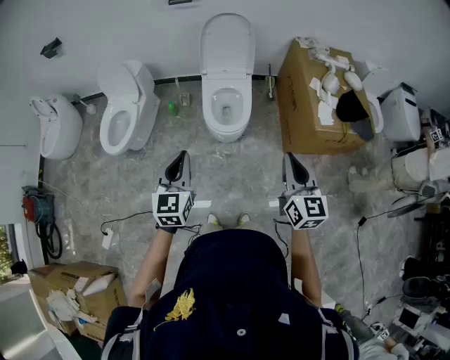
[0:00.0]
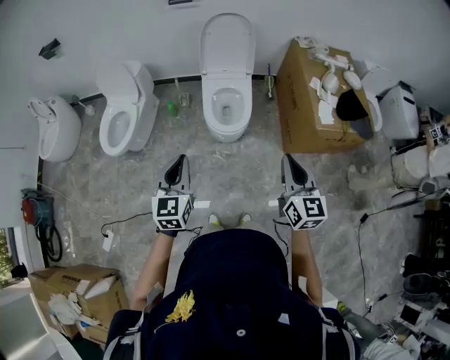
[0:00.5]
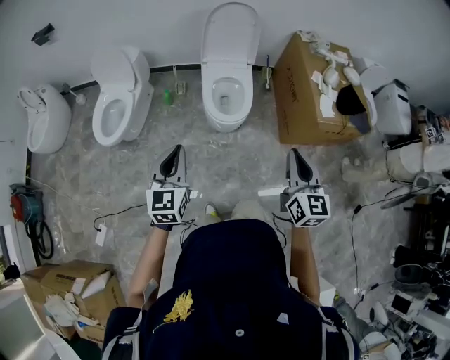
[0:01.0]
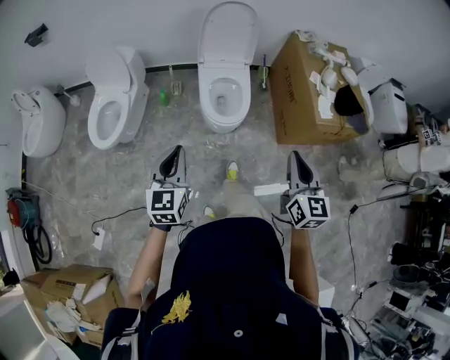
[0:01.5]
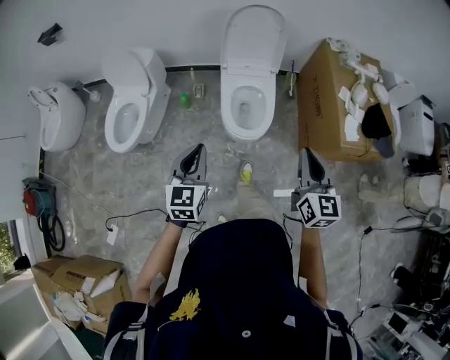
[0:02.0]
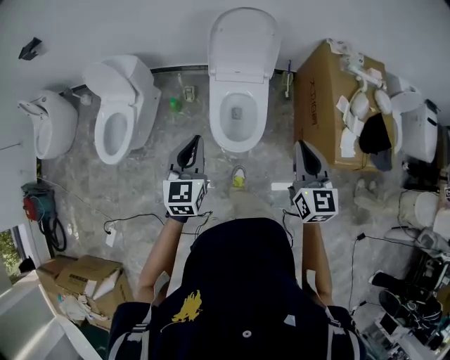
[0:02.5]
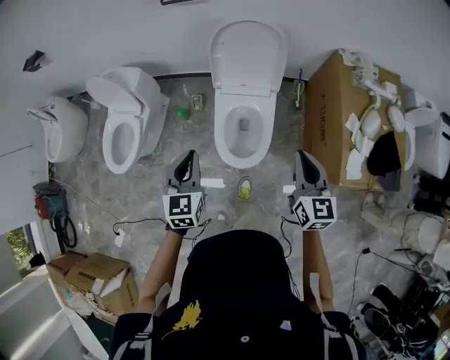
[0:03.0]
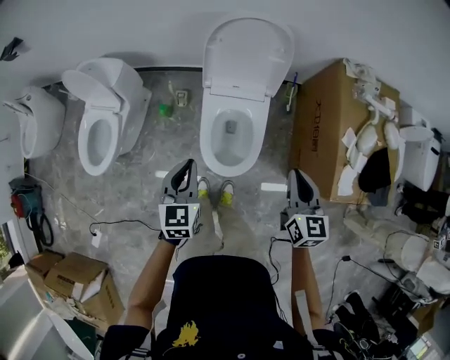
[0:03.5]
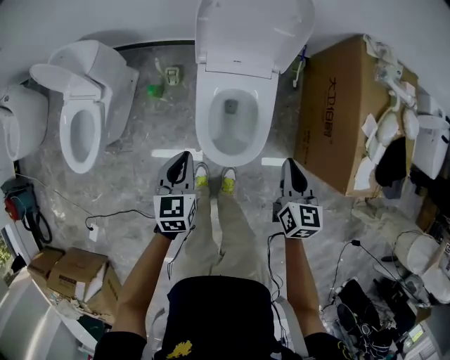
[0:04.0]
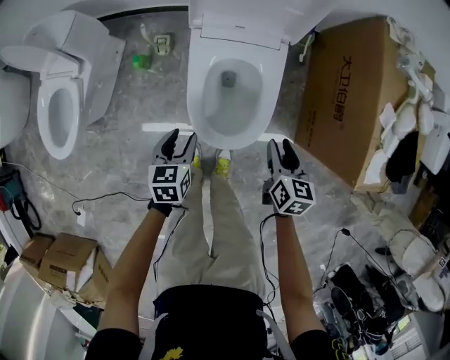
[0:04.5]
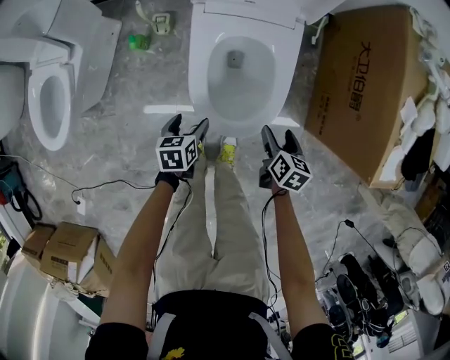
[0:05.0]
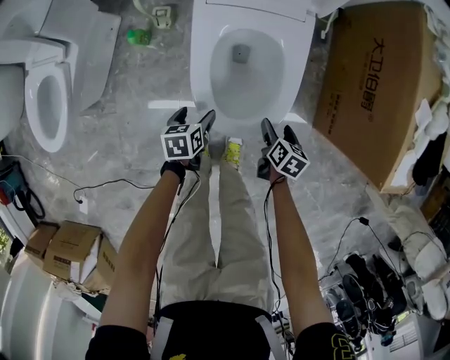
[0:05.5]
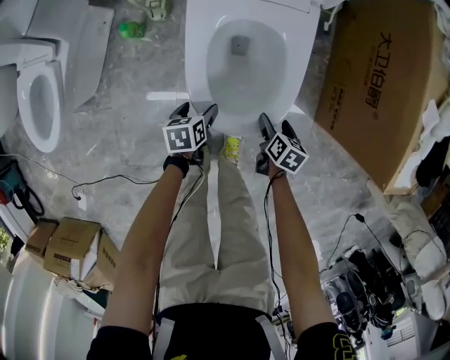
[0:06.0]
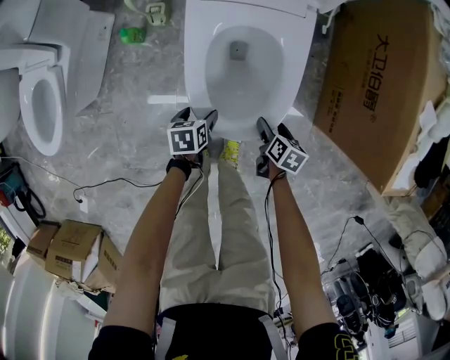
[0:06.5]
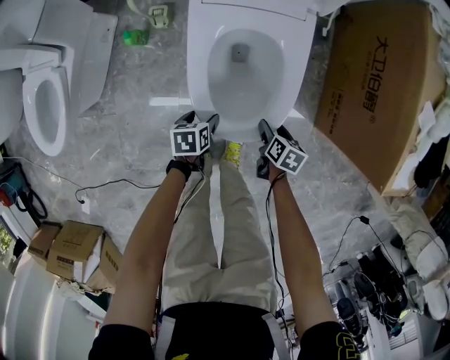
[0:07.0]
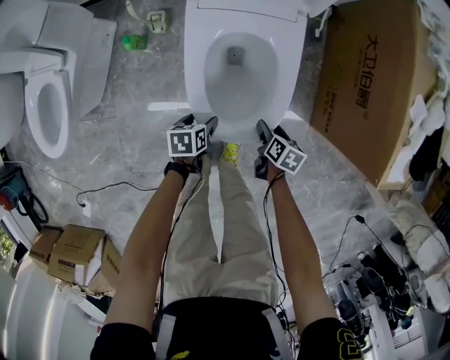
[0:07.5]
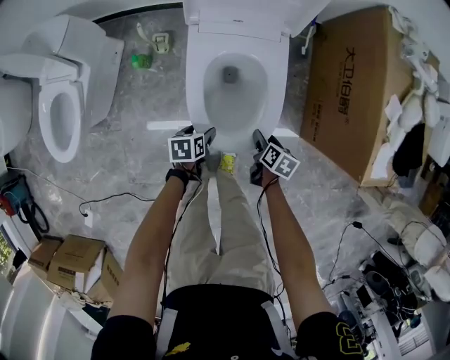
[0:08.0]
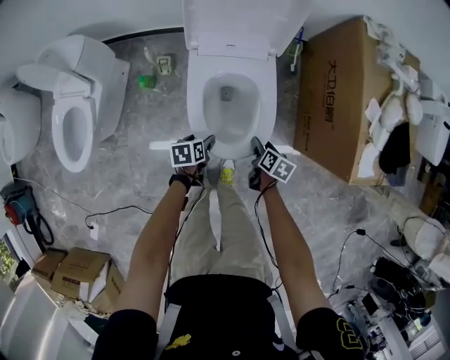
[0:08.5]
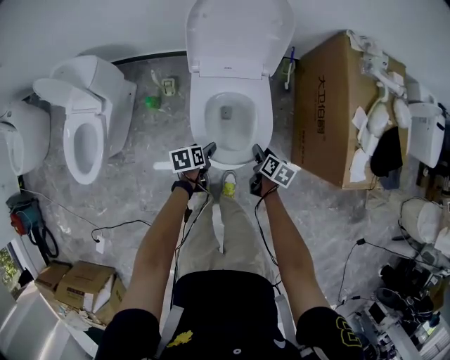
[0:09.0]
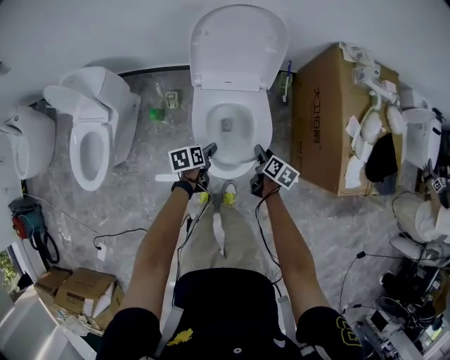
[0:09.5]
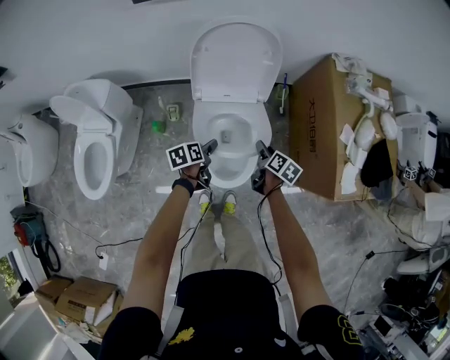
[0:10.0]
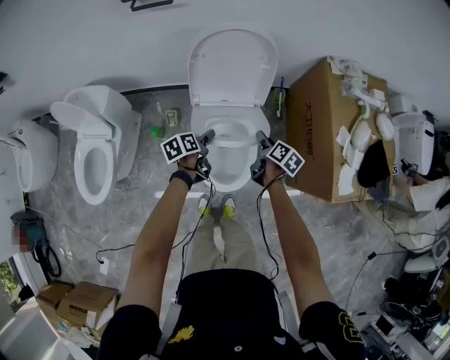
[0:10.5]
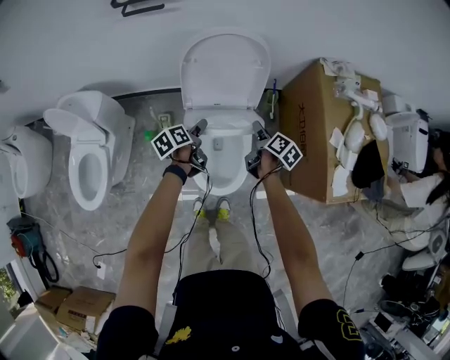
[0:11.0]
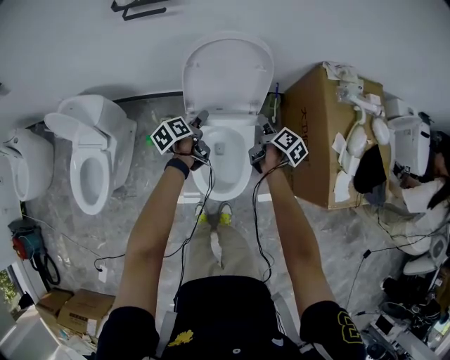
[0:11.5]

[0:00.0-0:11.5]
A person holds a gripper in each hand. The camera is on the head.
0:00.0 to 0:02.0: The left gripper is displaced forward, to the left and downward by approximately 15 cm; the right gripper goes approximately 15 cm forward and to the left.
0:02.0 to 0:04.0: The two grippers go roughly 40 cm forward and downward. The left gripper rotates some 20 degrees; the right gripper turns by some 20 degrees.
0:04.0 to 0:06.0: Both grippers move downward, about 40 cm. The right gripper turns by roughly 40 degrees, and opens up. Meanwhile the left gripper changes its angle by about 40 degrees, and opens its fingers.
0:06.0 to 0:07.5: There are only small adjustments of the grippers.
0:07.5 to 0:09.5: Both grippers travel together upward, approximately 25 cm.
0:09.5 to 0:11.5: Both grippers move forward and upward, roughly 25 cm. The right gripper rotates roughly 20 degrees. Meanwhile the left gripper changes its angle by roughly 30 degrees.

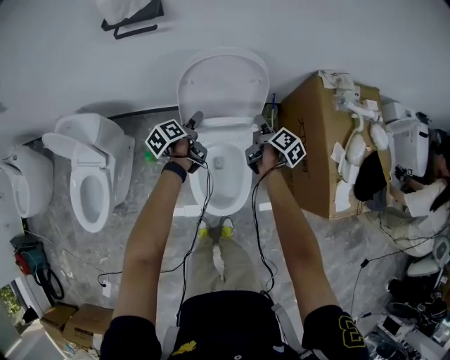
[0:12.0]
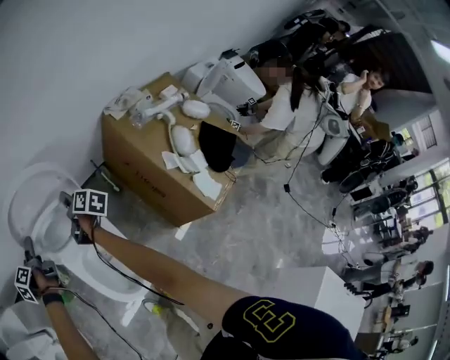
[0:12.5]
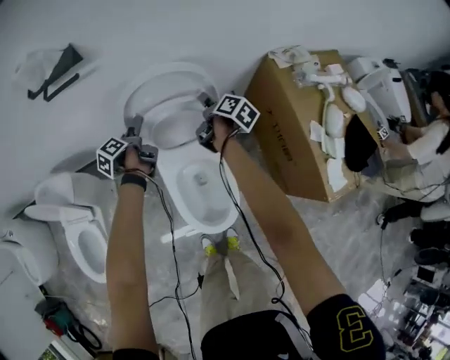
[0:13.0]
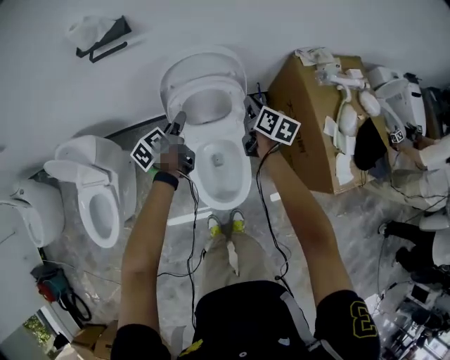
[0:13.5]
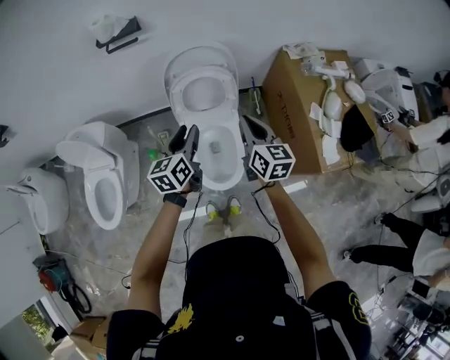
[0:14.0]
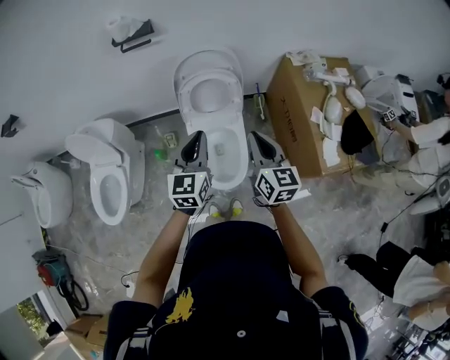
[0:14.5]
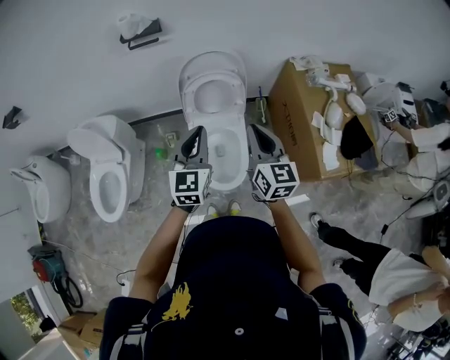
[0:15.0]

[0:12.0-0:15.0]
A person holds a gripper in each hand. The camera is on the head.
0:12.0 to 0:13.5: The two grippers go some 10 cm upward. The right gripper moves approximately 10 cm forward and comes back, changes its angle by some 30 degrees, and closes. The left gripper goes forward and returns, roughly 10 cm each way.
0:13.5 to 0:15.0: The right gripper travels backward and upward by some 35 cm, and swivels some 40 degrees. Meanwhile the left gripper heads upward and backward, covering approximately 35 cm, rolls clockwise, seen from behind, by approximately 60 degrees, and closes up.

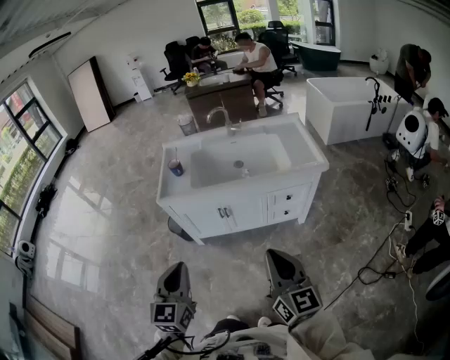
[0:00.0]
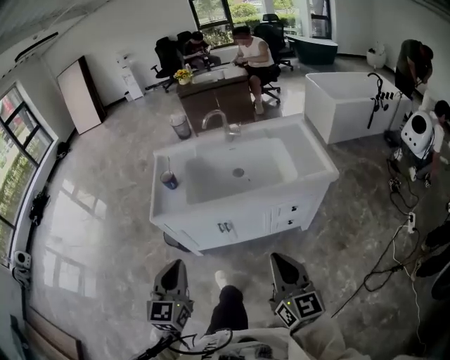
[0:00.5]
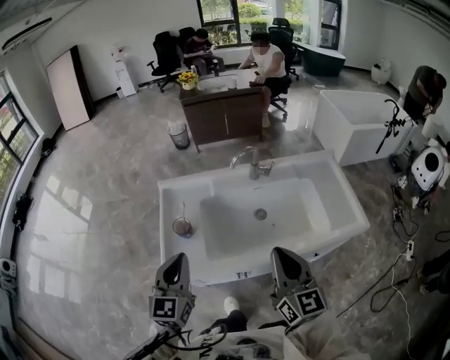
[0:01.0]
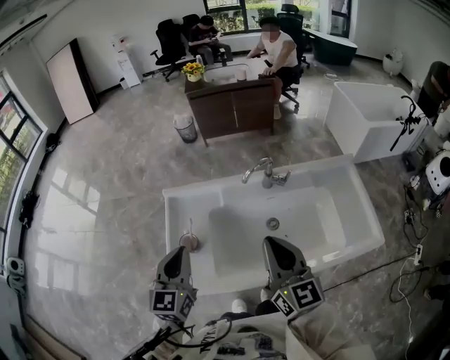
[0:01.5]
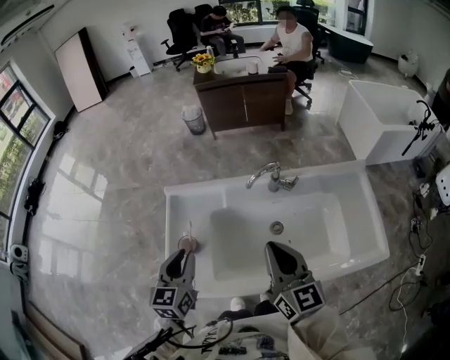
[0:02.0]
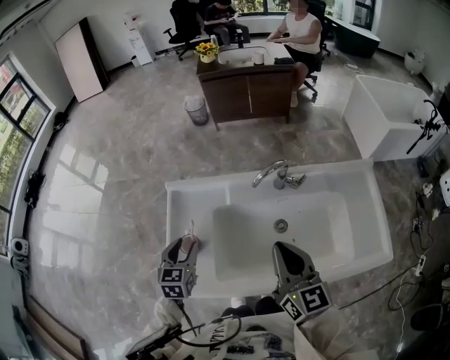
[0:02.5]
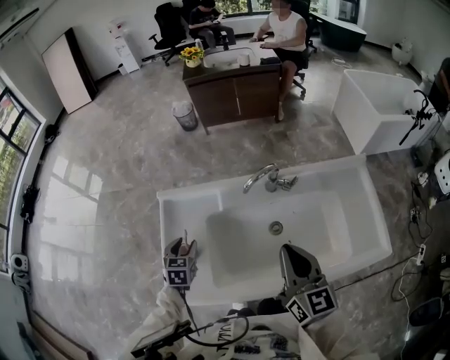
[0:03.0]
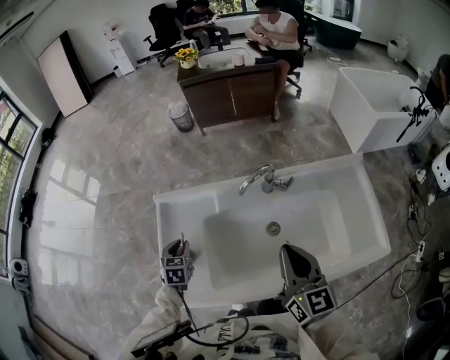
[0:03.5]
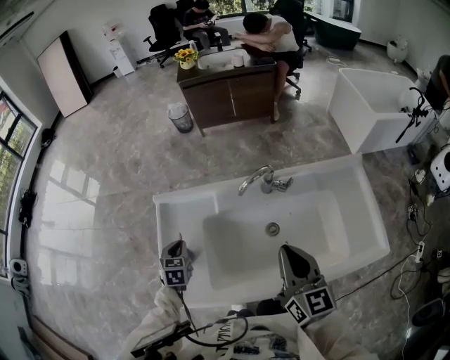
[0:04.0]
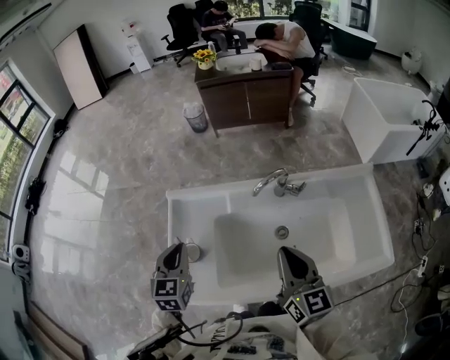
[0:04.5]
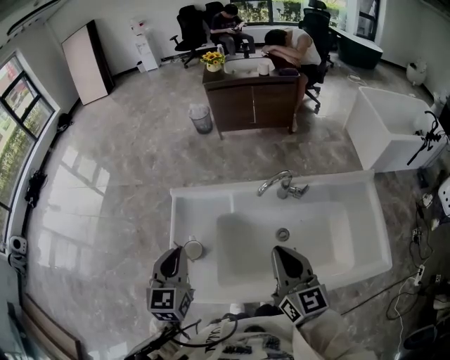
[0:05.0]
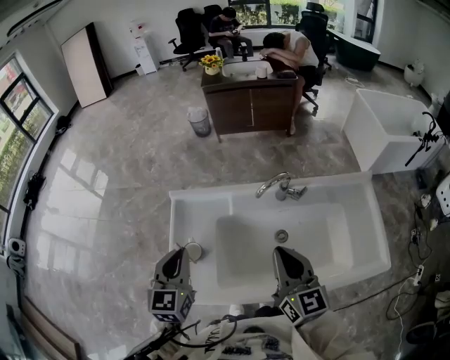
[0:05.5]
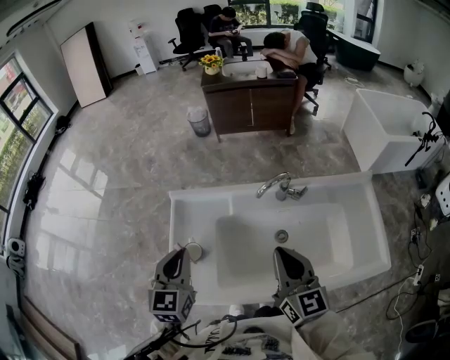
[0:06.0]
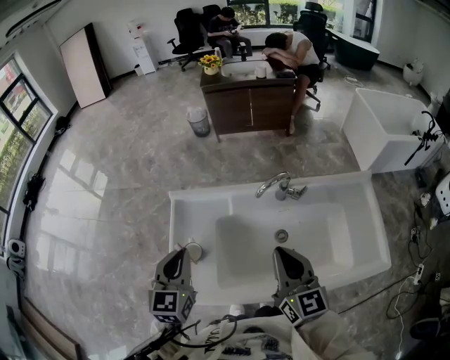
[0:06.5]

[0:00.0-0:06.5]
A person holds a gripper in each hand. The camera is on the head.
0:00.0 to 0:02.0: Both grippers are carried forward, approximately 60 cm.
0:02.0 to 0:04.5: The left gripper shifts approximately 5 cm forward, moves roughly 15 cm downward and comes back, and opens, then closes once more.
0:04.5 to 0:06.5: The left gripper ends up approximately 5 cm from where it was.

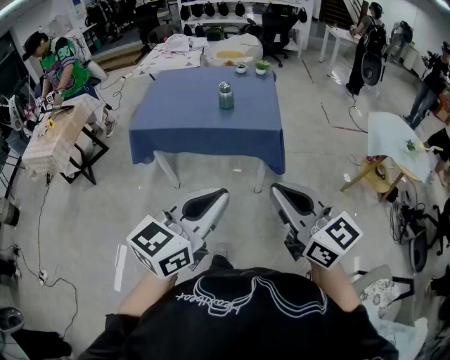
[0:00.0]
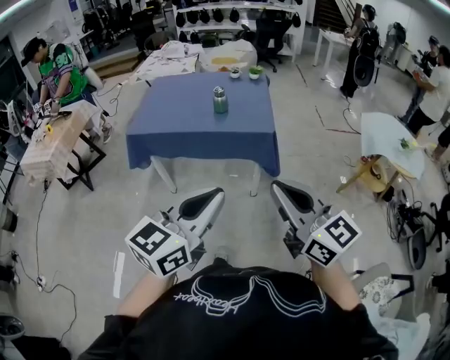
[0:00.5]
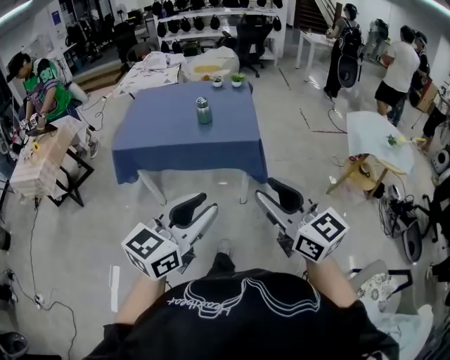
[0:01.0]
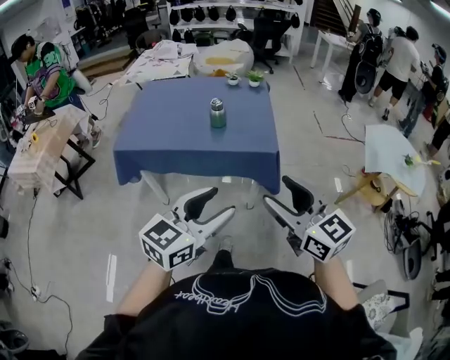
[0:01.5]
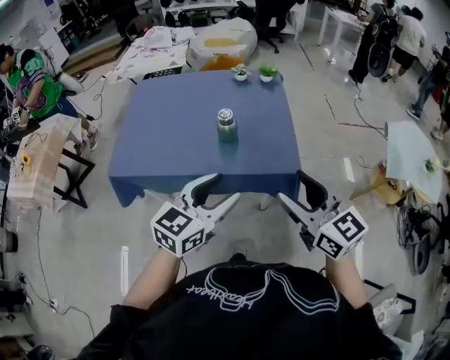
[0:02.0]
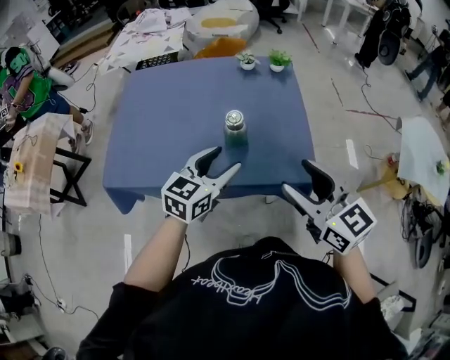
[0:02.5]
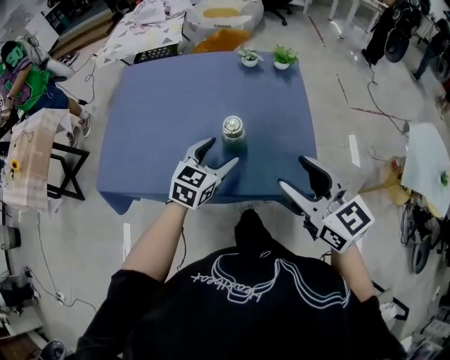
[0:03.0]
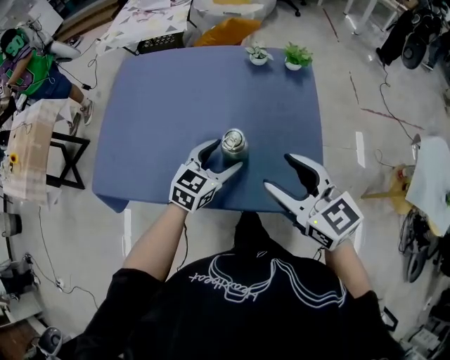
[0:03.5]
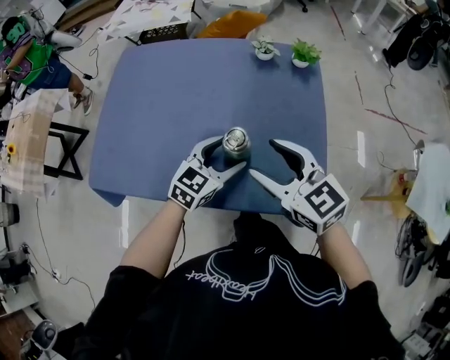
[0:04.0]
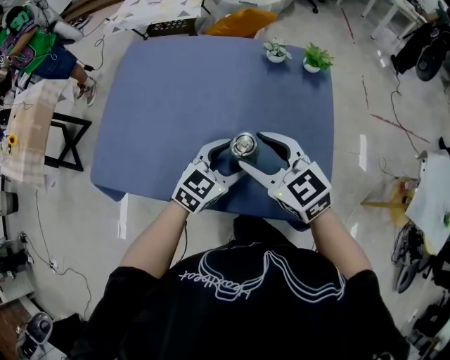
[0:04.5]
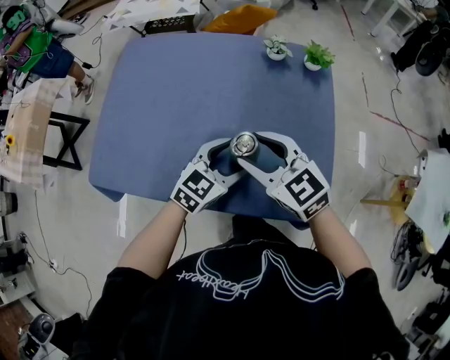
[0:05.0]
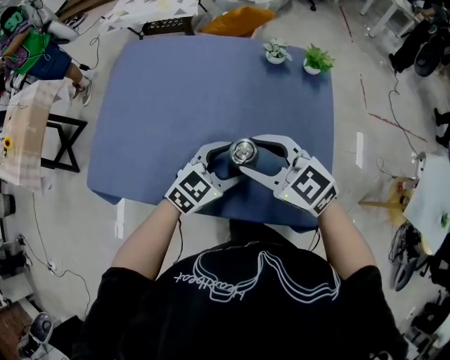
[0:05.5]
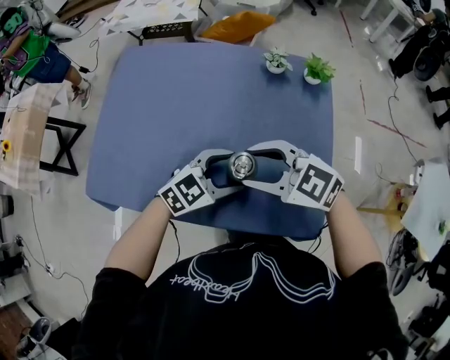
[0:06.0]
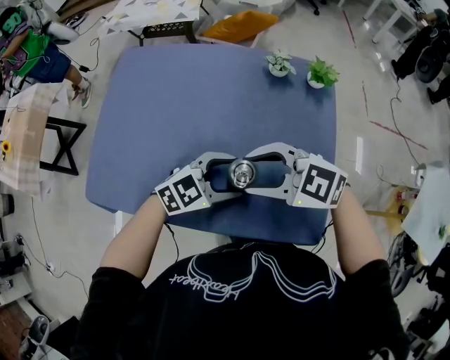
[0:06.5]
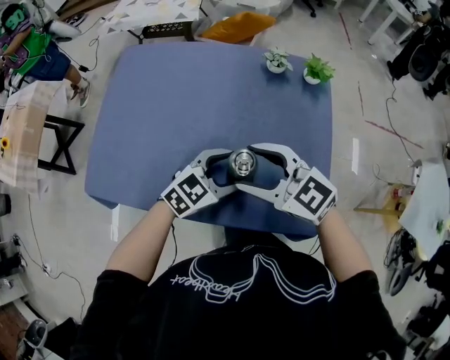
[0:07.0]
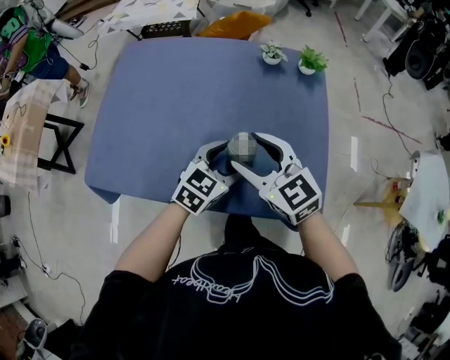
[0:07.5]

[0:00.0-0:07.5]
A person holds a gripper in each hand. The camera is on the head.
0:00.0 to 0:02.0: Both grippers travel together forward, approximately 30 cm. The right gripper opens, while the left gripper opens up.
0:02.0 to 0:04.0: The grippers both shift forward and downward by about 30 cm.
0:04.0 to 0:05.5: The right gripper moves approximately 5 cm.
